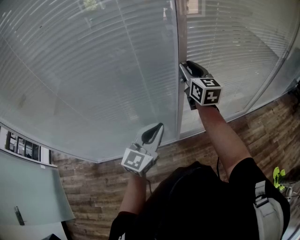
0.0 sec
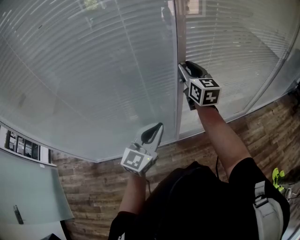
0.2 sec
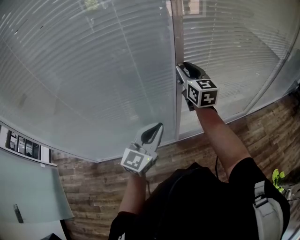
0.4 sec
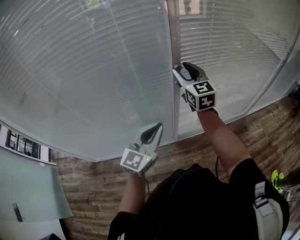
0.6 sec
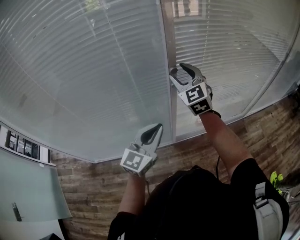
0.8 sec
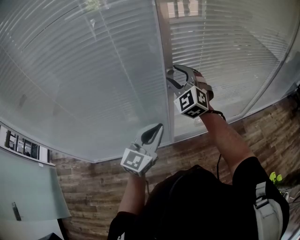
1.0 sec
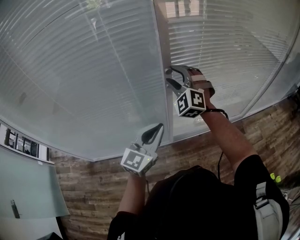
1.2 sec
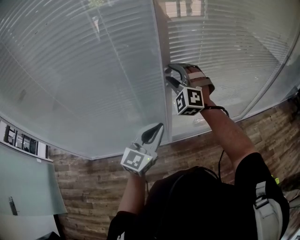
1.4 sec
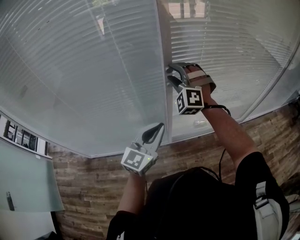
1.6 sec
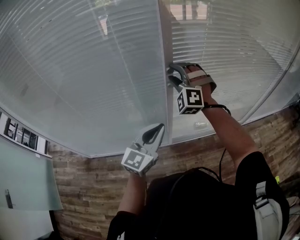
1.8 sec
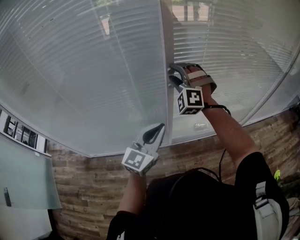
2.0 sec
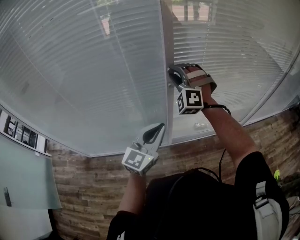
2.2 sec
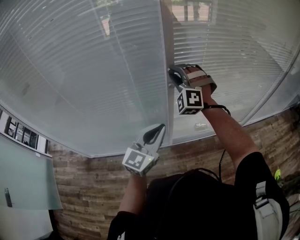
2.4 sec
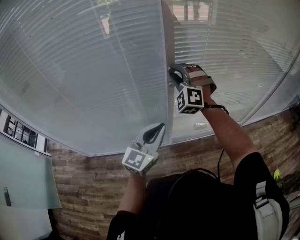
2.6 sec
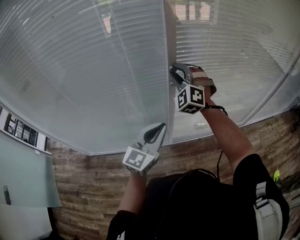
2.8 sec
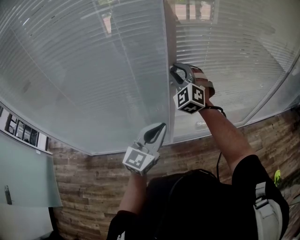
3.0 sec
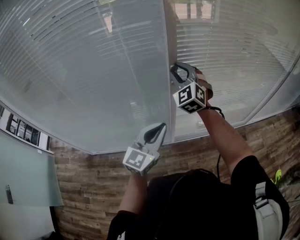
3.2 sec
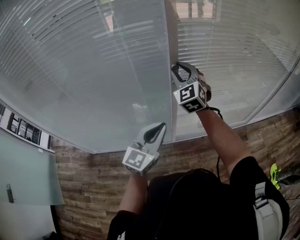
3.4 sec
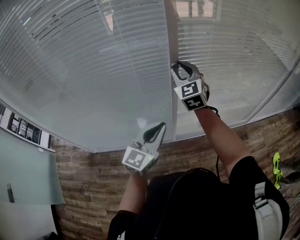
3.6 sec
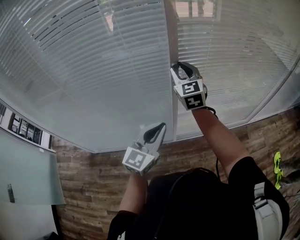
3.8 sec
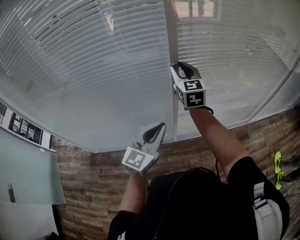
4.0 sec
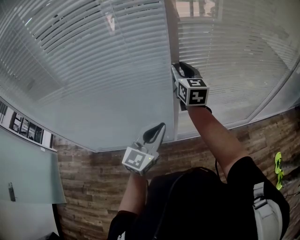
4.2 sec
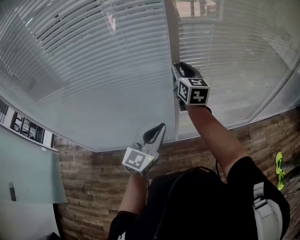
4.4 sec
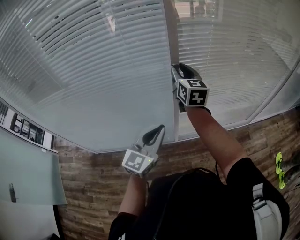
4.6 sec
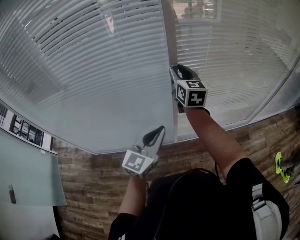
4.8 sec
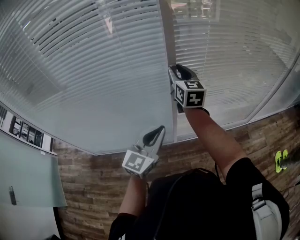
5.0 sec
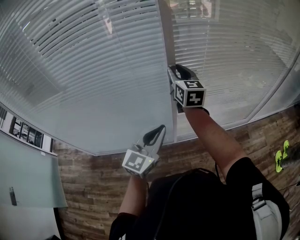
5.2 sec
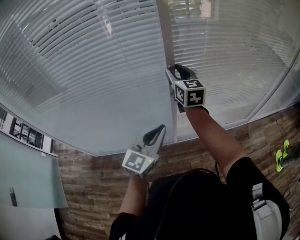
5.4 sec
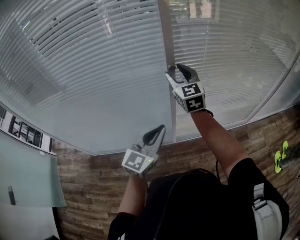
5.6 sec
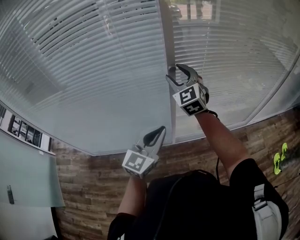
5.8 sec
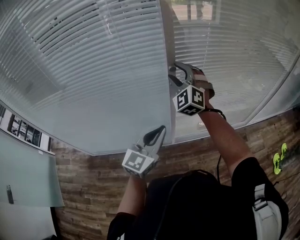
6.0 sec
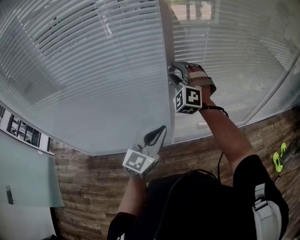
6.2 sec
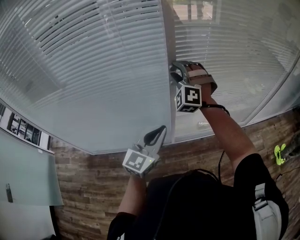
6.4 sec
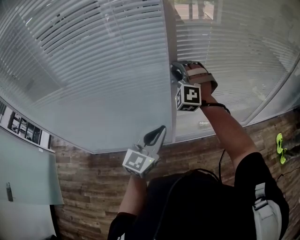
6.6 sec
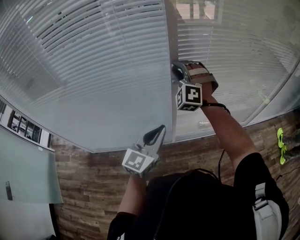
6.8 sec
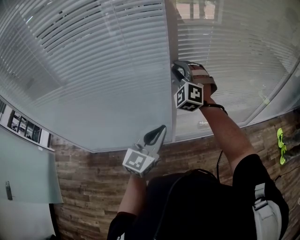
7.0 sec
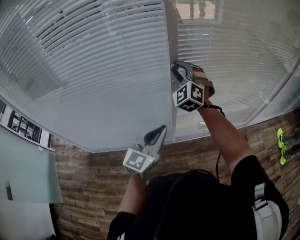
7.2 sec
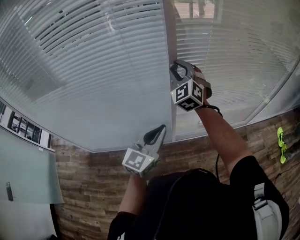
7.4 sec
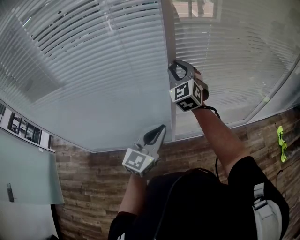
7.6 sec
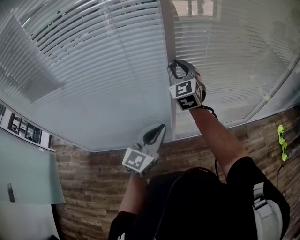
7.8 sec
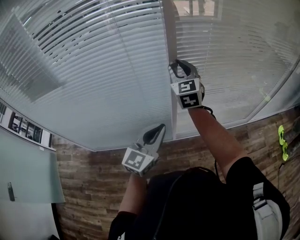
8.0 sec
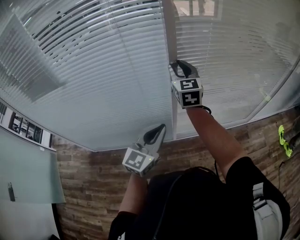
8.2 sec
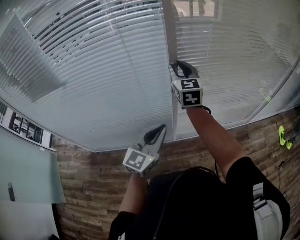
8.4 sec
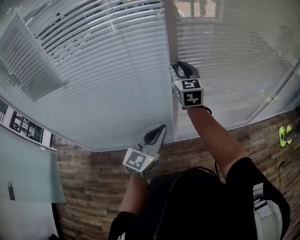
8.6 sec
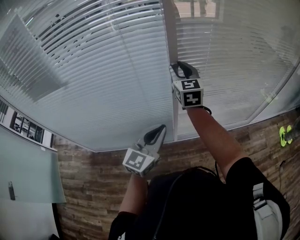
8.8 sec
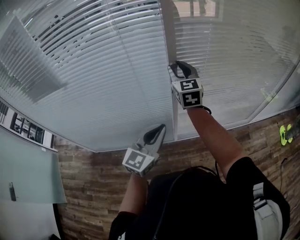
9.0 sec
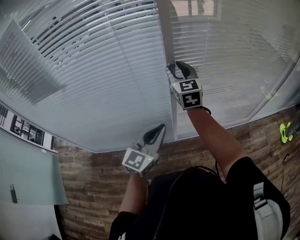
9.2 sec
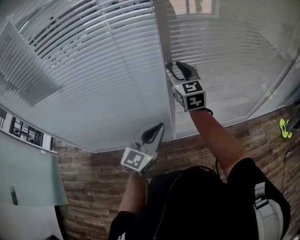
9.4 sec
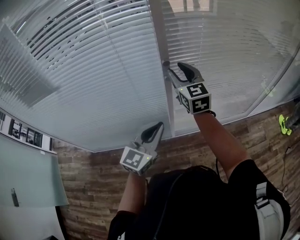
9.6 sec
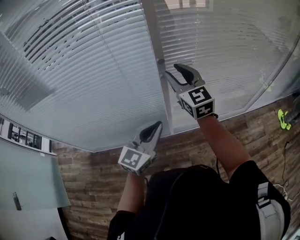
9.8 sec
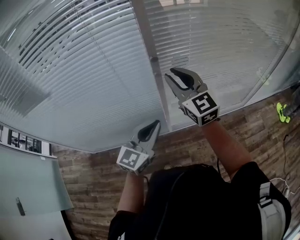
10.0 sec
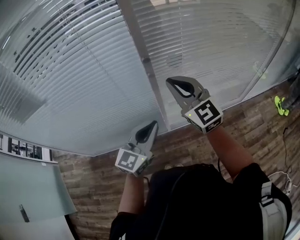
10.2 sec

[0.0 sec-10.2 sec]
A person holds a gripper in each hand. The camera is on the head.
0.0 sec to 1.4 sec: The right gripper rolls counterclockwise, seen from behind, by approximately 80 degrees; the left gripper travels to the right by about 5 cm.
1.4 sec to 3.0 sec: The grippers make only small movements.
3.0 sec to 4.4 sec: The right gripper twists approximately 70 degrees clockwise, seen from behind.
4.4 sec to 5.8 sec: The right gripper twists some 40 degrees counterclockwise, seen from behind, and opens up.
5.8 sec to 7.2 sec: The right gripper swivels some 20 degrees, and closes up.
7.2 sec to 8.8 sec: The right gripper twists approximately 50 degrees clockwise, seen from behind.
8.8 sec to 10.2 sec: The right gripper moves backward and to the right, some 15 cm, turns by about 20 degrees, and closes up.

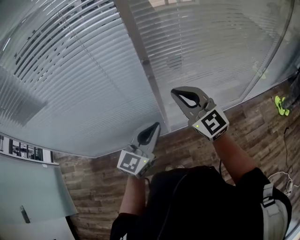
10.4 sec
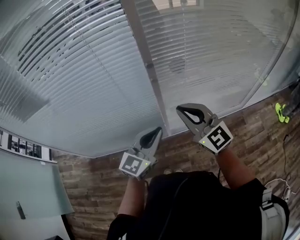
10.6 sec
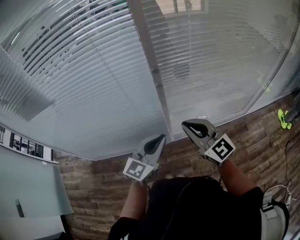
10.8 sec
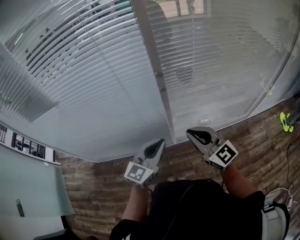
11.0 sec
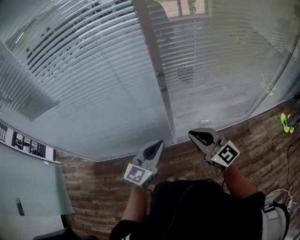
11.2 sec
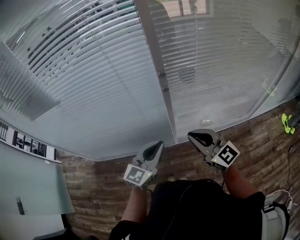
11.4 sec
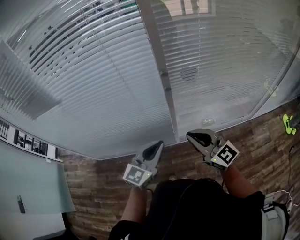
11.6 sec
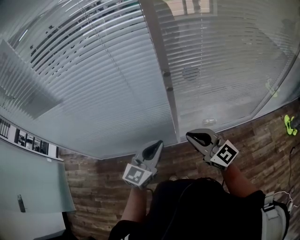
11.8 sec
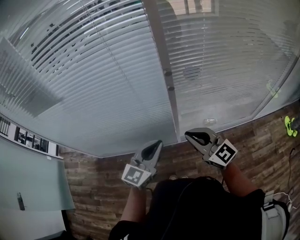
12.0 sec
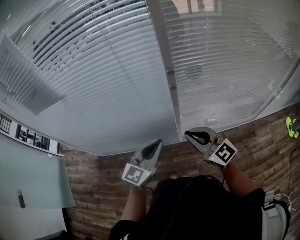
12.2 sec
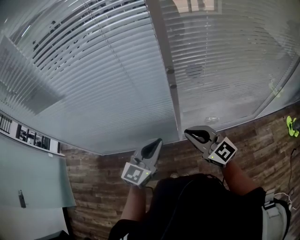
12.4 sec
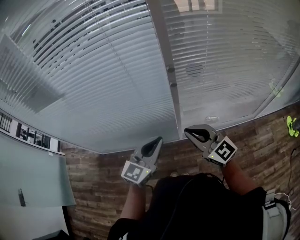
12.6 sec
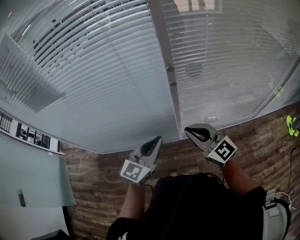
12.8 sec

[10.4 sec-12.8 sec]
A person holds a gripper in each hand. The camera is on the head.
10.4 sec to 11.6 sec: The right gripper shifts some 10 cm downward and backward, and rotates approximately 20 degrees. Meanwhile the left gripper is displaced downward by roughly 5 cm.
11.6 sec to 12.8 sec: There are only small adjustments of the grippers.

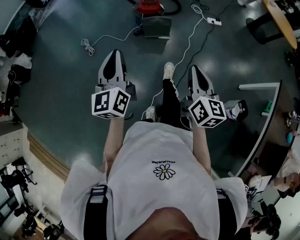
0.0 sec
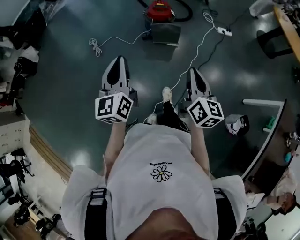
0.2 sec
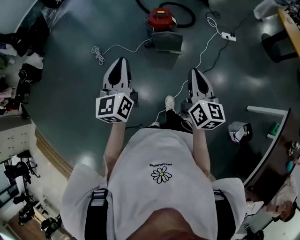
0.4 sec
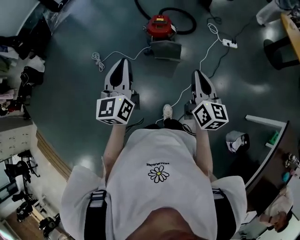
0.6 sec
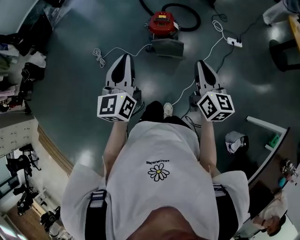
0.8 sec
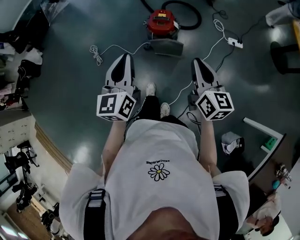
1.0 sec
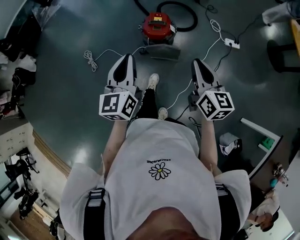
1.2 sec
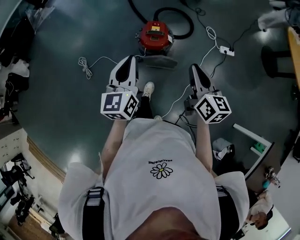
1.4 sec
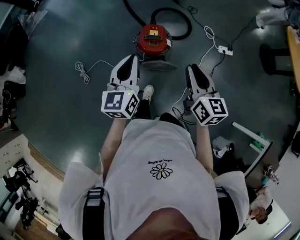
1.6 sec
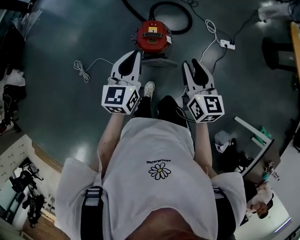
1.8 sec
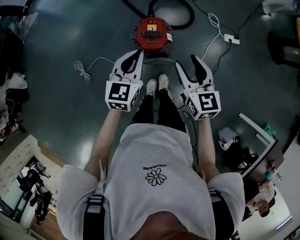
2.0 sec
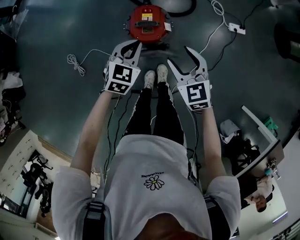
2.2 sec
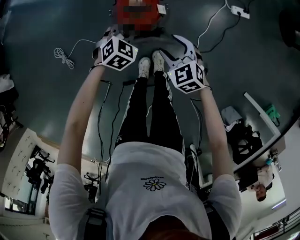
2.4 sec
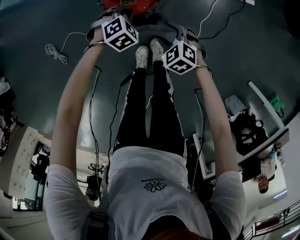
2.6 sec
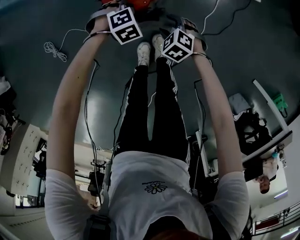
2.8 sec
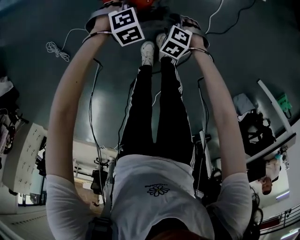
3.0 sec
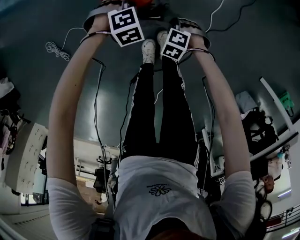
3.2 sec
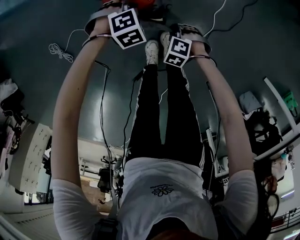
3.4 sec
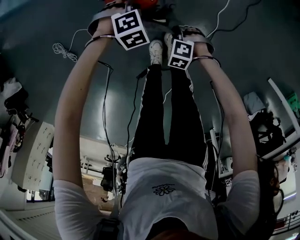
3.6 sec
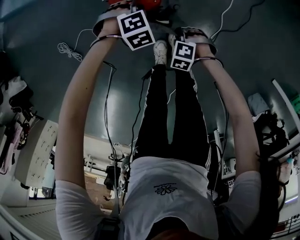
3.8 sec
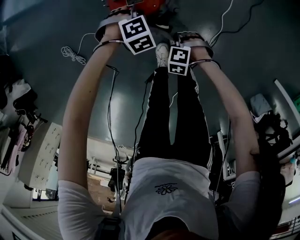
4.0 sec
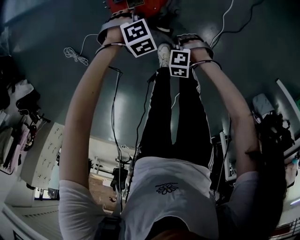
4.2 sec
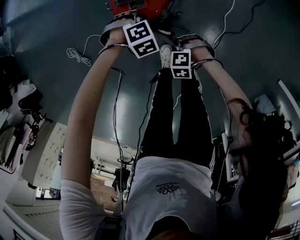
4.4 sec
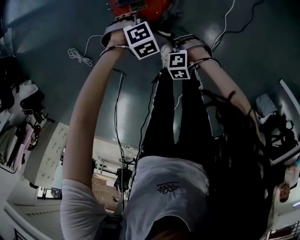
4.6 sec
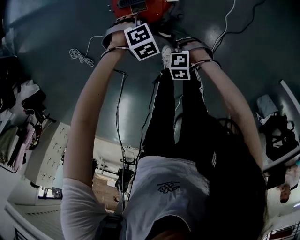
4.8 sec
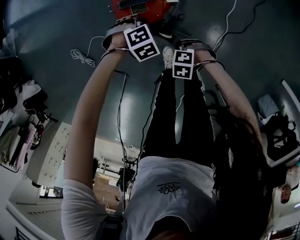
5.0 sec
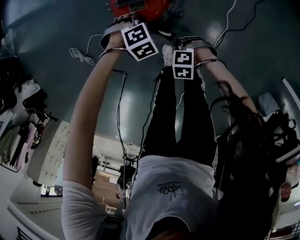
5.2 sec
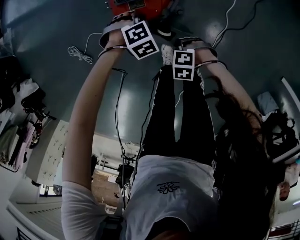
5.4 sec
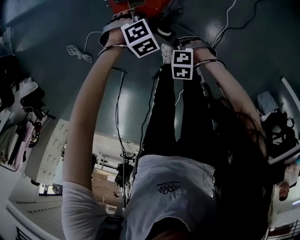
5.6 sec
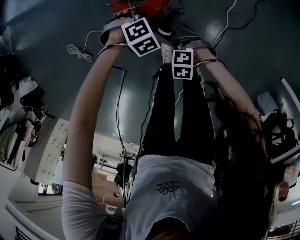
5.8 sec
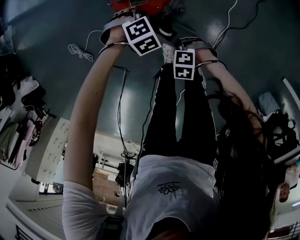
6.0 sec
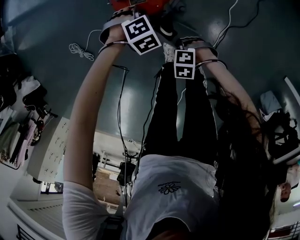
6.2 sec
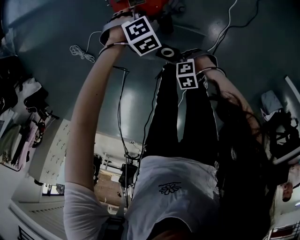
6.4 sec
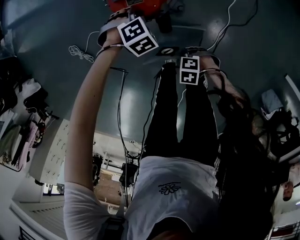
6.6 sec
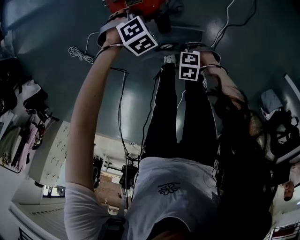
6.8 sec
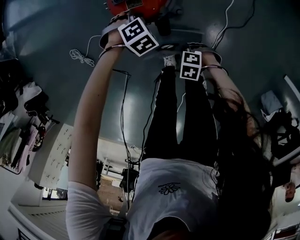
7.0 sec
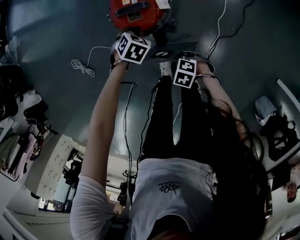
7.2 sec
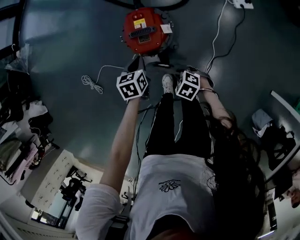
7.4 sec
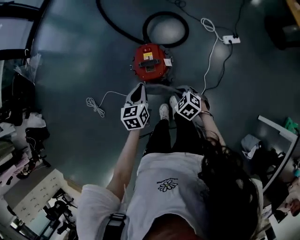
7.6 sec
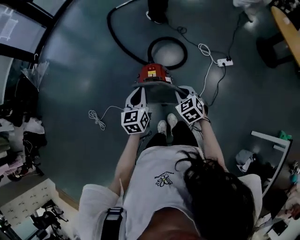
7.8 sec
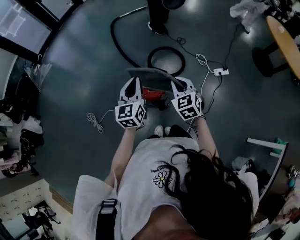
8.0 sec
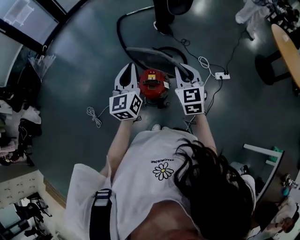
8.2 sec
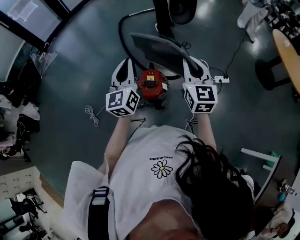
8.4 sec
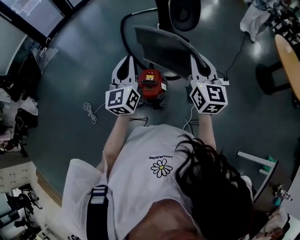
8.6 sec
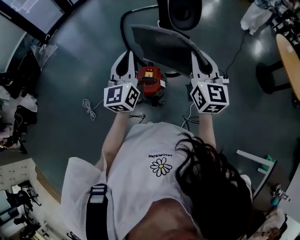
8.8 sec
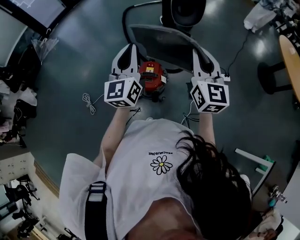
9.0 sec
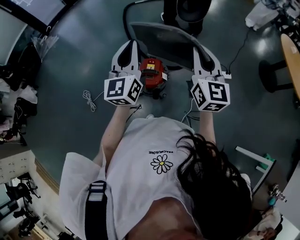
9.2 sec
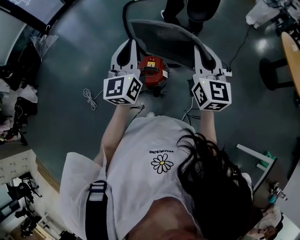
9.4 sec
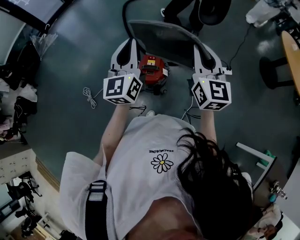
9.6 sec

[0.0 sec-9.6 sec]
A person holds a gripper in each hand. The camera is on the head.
0.0 sec to 1.6 sec: Both grippers are carried forward, some 60 cm.
1.6 sec to 3.2 sec: The two grippers go roughly 60 cm downward. The left gripper tips its fingers downward by about 60 degrees, while the right gripper points its fingers about 60 degrees further downward, and opens, then closes again.
3.2 sec to 4.8 sec: The right gripper changes place by roughly 10 cm, and turns by some 20 degrees.
4.8 sec to 6.4 sec: The right gripper moves some 10 cm.
6.4 sec to 8.0 sec: Both grippers move upward, roughly 50 cm. The right gripper points its fingers some 40 degrees further upward. Meanwhile the left gripper points its fingers some 70 degrees further upward.
8.0 sec to 9.6 sec: The two grippers go roughly 15 cm upward. The right gripper points its fingers about 30 degrees further upward.

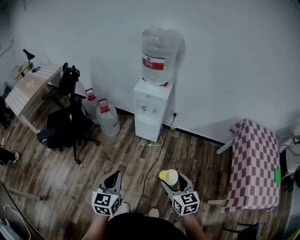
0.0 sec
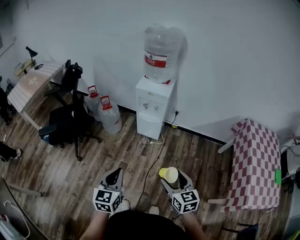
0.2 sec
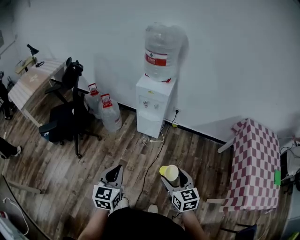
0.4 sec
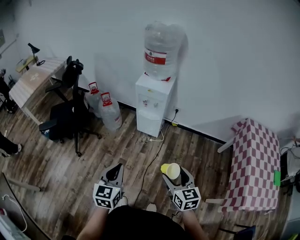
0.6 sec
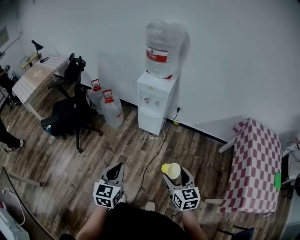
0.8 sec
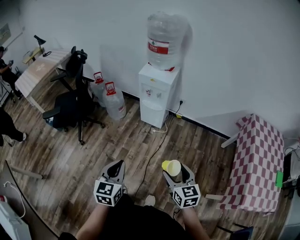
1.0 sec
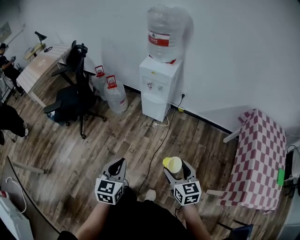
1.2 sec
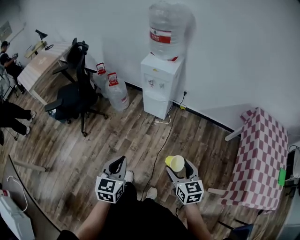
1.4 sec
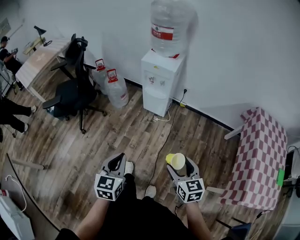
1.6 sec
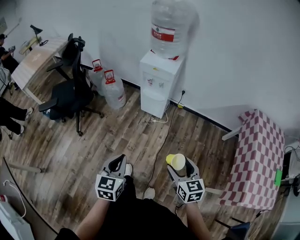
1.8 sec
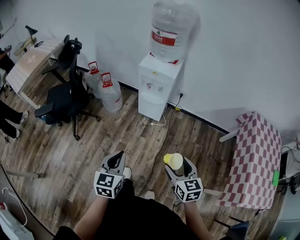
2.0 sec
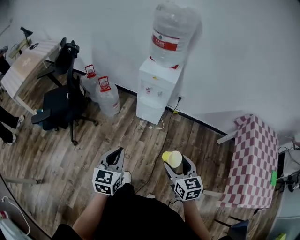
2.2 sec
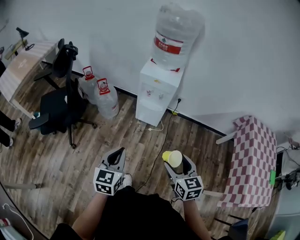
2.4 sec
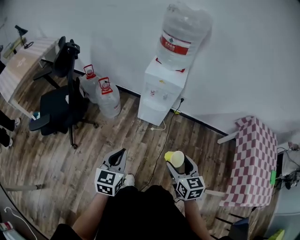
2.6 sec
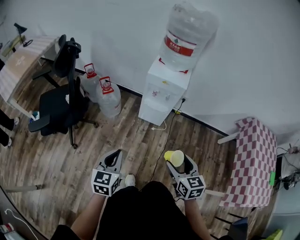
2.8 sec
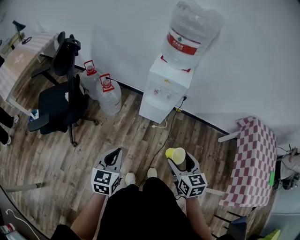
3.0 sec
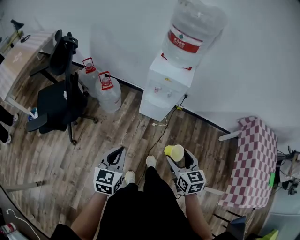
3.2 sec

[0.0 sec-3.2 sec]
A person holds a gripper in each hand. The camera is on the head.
0.0 sec to 1.6 sec: Both grippers travel together to the right, some 5 cm.
1.6 sec to 3.2 sec: The grippers both shift forward and to the left by roughly 25 cm.
